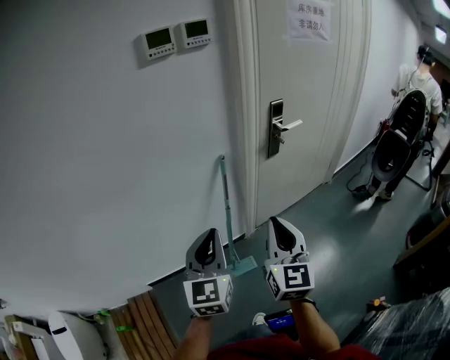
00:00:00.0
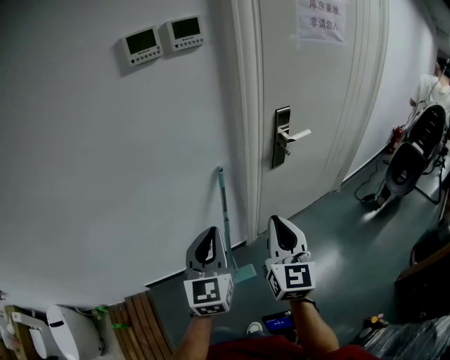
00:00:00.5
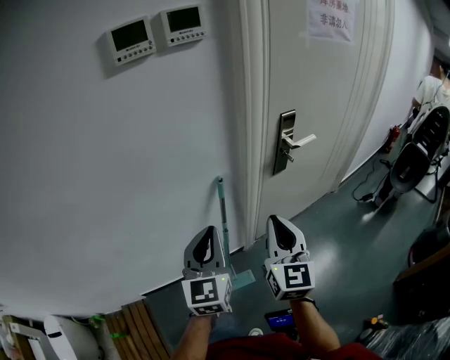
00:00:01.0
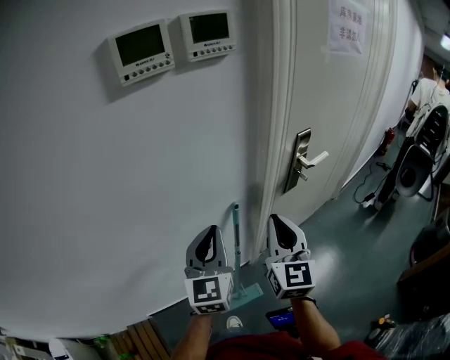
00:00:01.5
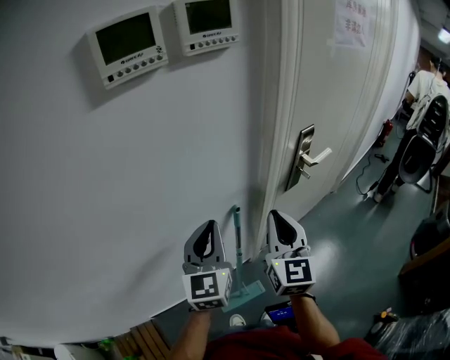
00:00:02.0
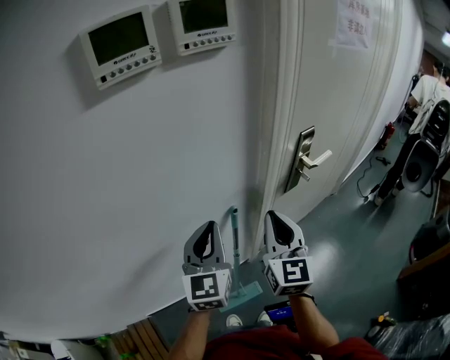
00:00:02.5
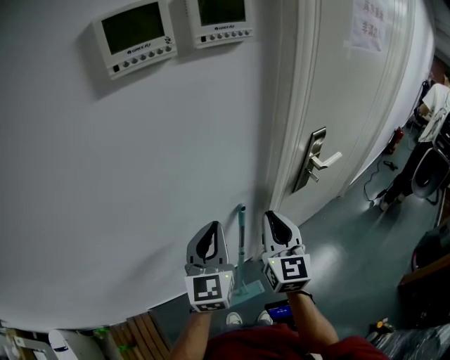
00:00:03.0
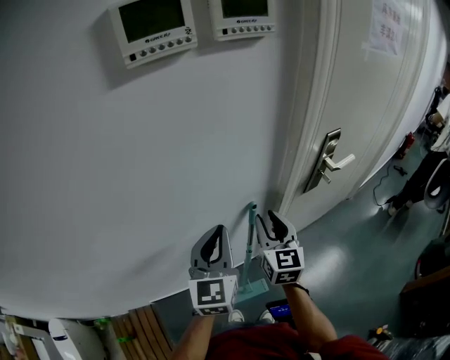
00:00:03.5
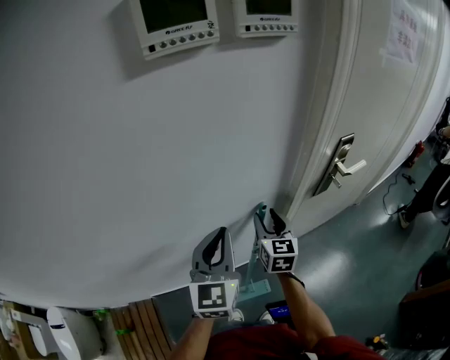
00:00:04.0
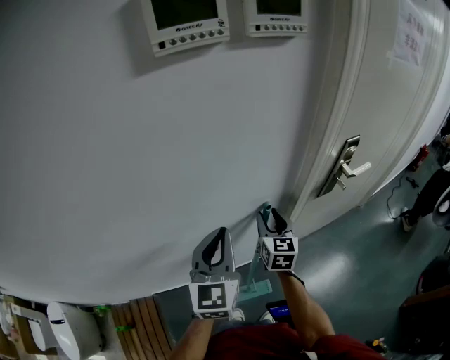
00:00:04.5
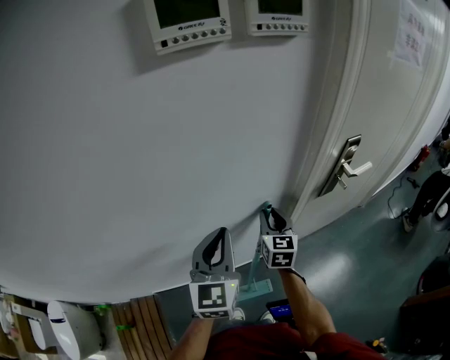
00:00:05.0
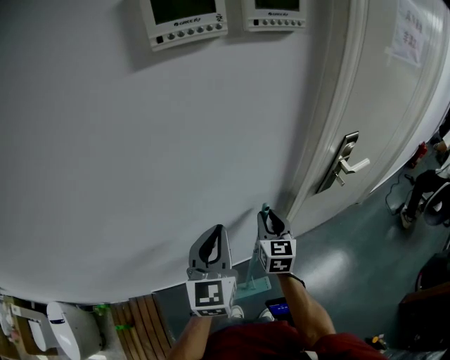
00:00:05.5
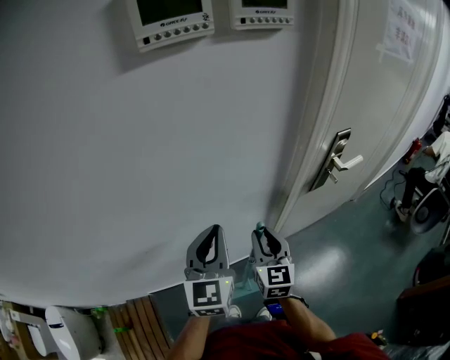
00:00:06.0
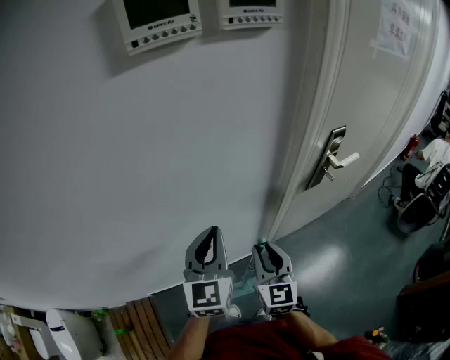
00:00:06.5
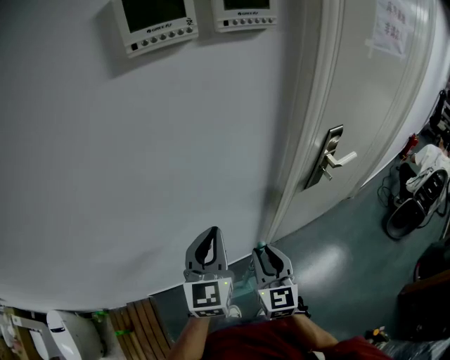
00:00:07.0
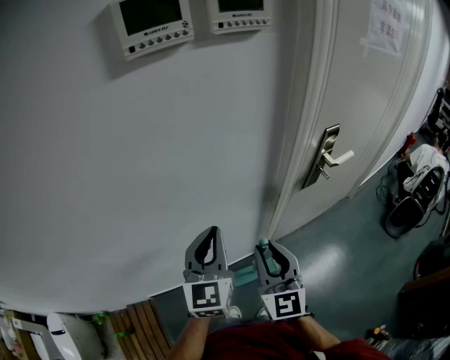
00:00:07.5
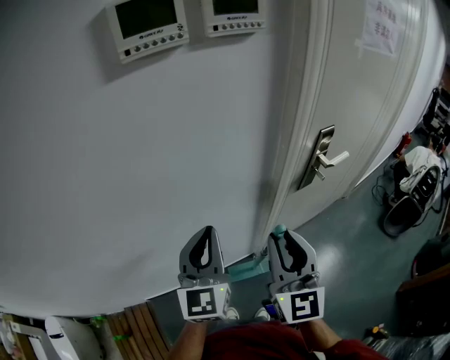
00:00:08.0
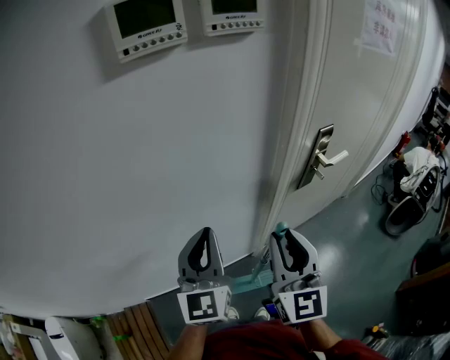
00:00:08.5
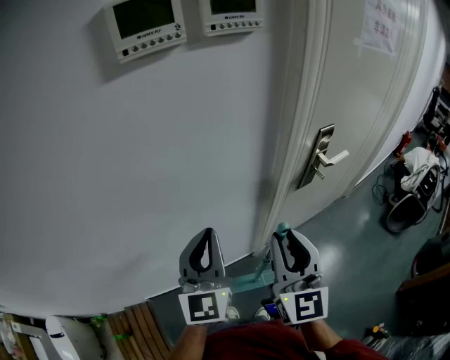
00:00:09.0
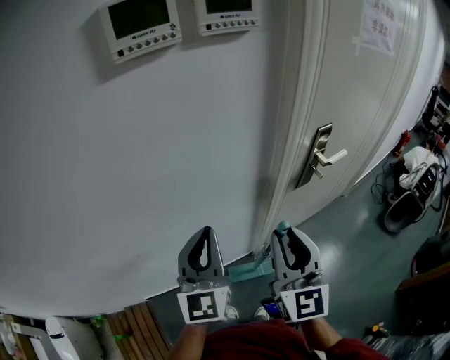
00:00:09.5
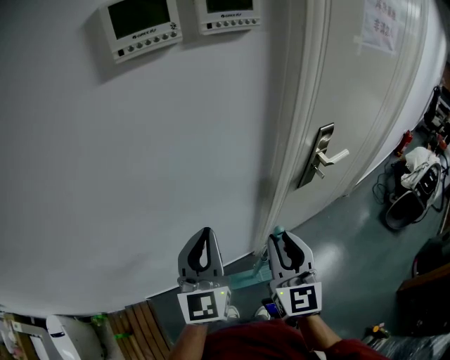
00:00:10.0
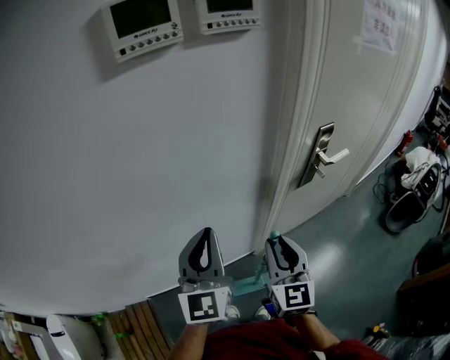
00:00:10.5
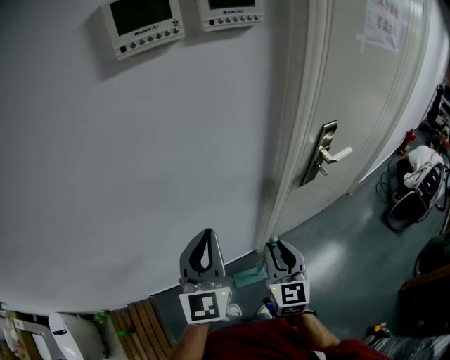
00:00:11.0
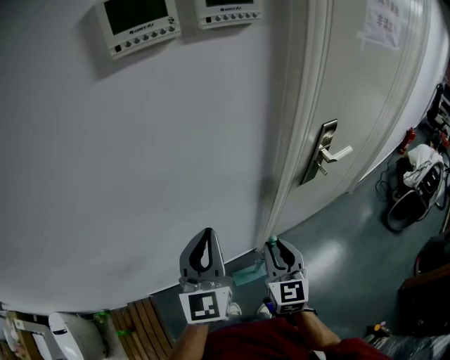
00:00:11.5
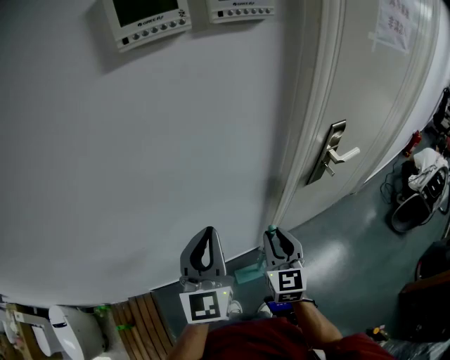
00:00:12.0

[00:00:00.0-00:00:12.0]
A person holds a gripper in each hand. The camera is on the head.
00:00:00.0 to 00:00:02.0: The two grippers go approximately 30 cm forward.
00:00:02.0 to 00:00:04.0: The right gripper moves downward, forward and to the left, roughly 20 cm, changes its angle by roughly 20 degrees, and opens its fingers.
00:00:04.0 to 00:00:06.0: The right gripper is displaced backward by about 5 cm.
00:00:06.0 to 00:00:08.0: The right gripper shifts about 15 cm upward and backward.
00:00:08.0 to 00:00:10.0: There are only small adjustments of the grippers.
00:00:10.0 to 00:00:12.0: The right gripper heads downward, covering some 10 cm.

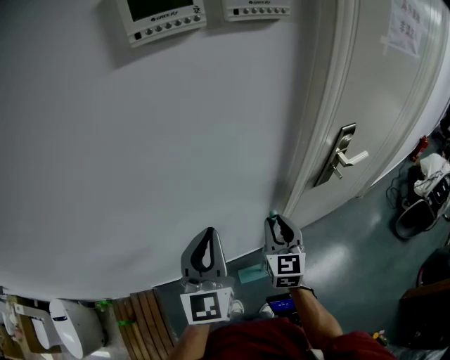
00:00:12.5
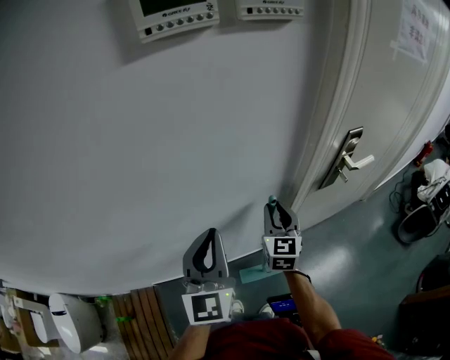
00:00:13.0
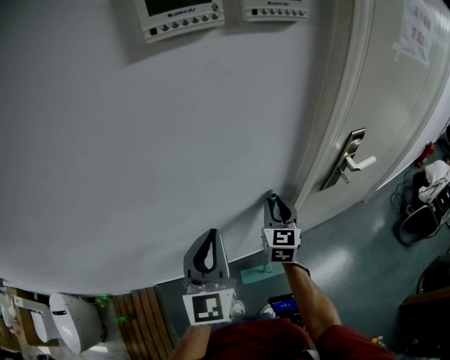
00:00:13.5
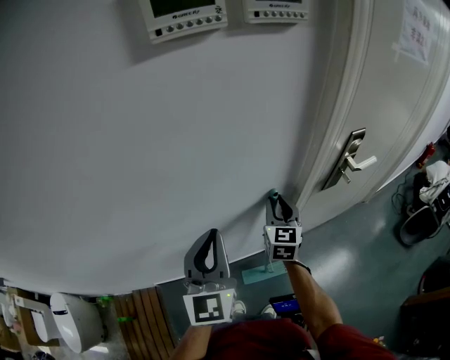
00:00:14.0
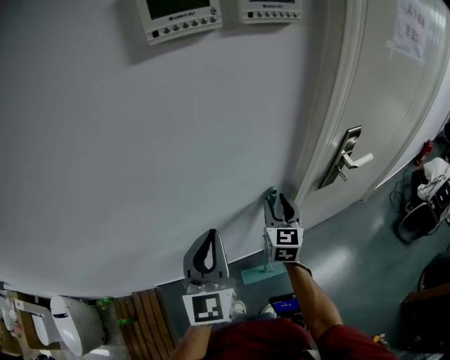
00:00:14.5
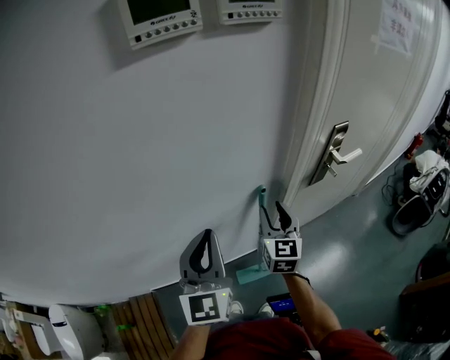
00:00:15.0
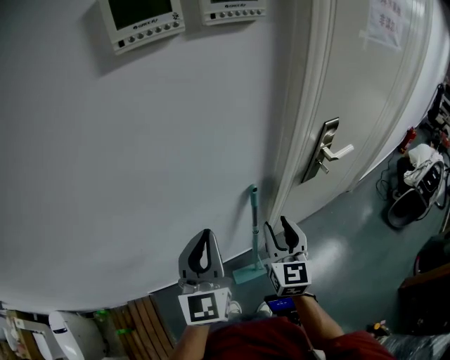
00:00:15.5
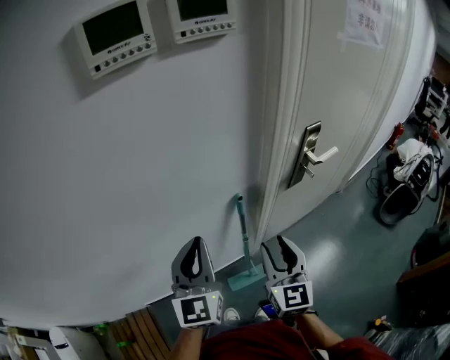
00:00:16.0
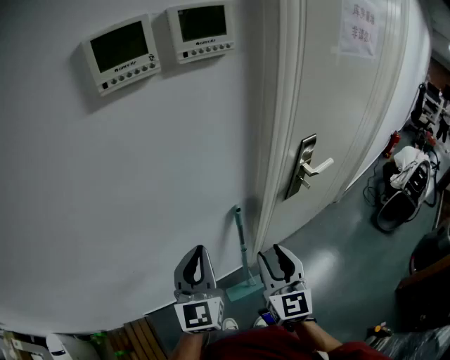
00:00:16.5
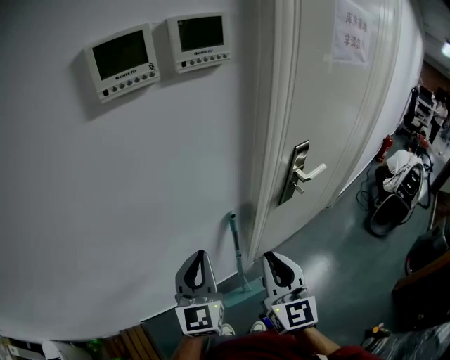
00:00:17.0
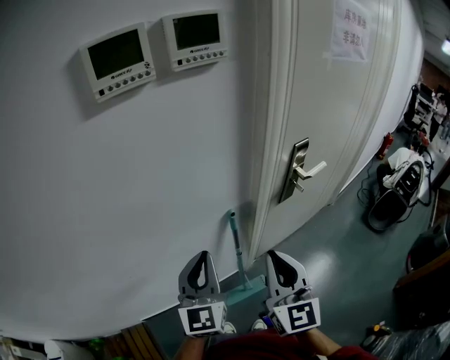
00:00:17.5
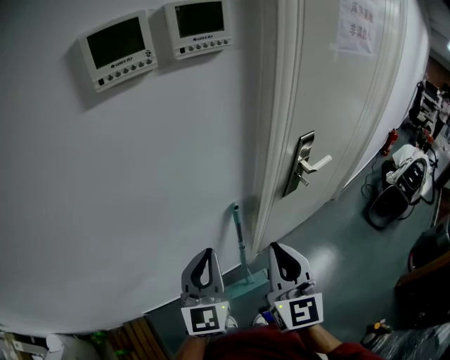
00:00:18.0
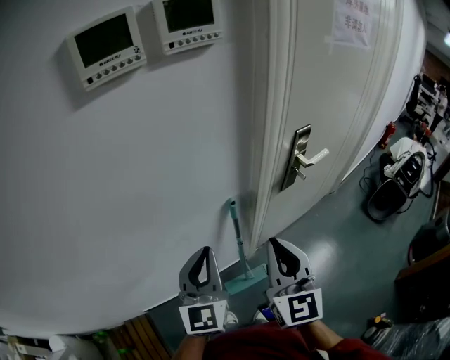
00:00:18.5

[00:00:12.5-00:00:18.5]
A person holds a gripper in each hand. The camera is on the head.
00:00:12.5 to 00:00:14.5: The right gripper moves forward, roughly 5 cm.
00:00:14.5 to 00:00:16.5: The right gripper shifts approximately 15 cm backward and upward.
00:00:16.5 to 00:00:18.5: The right gripper moves upward, roughly 5 cm, and closes its fingers.

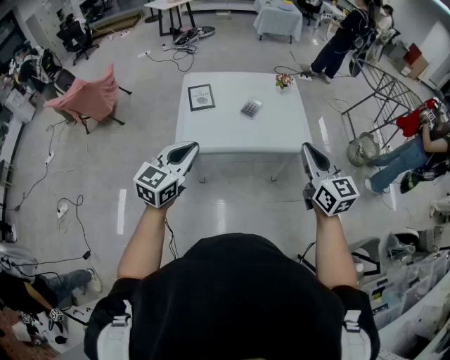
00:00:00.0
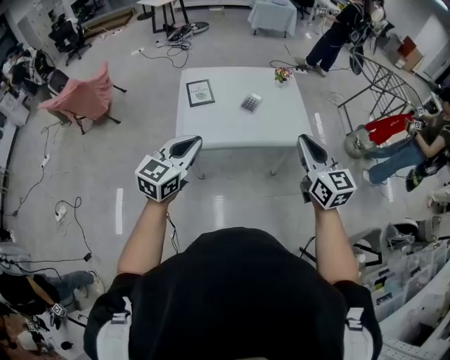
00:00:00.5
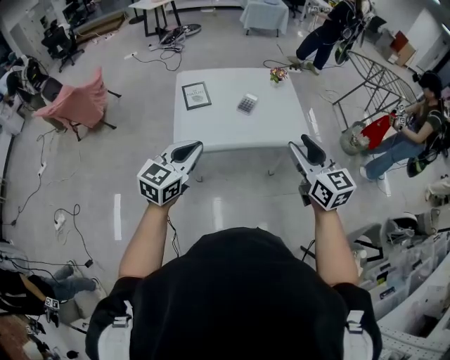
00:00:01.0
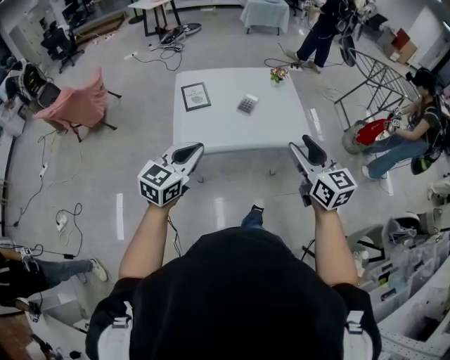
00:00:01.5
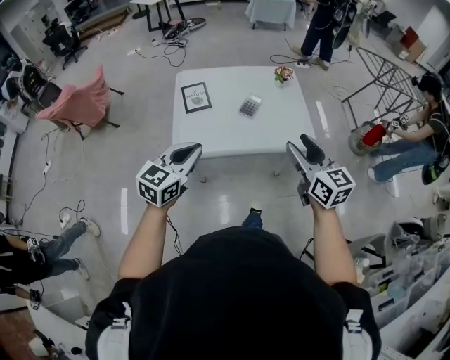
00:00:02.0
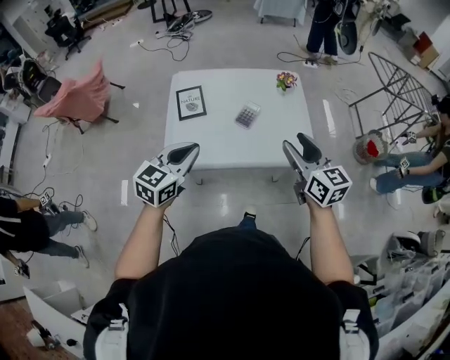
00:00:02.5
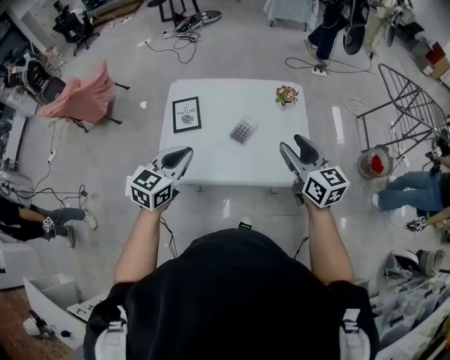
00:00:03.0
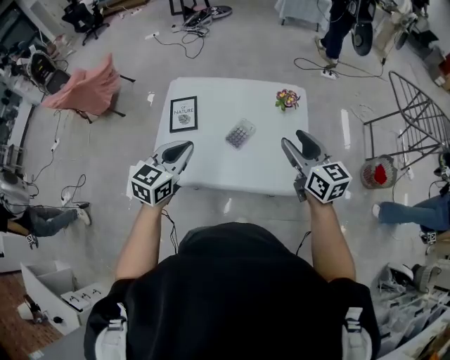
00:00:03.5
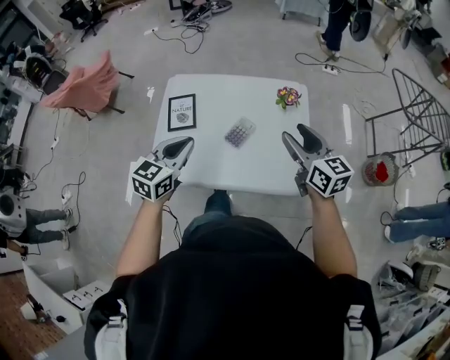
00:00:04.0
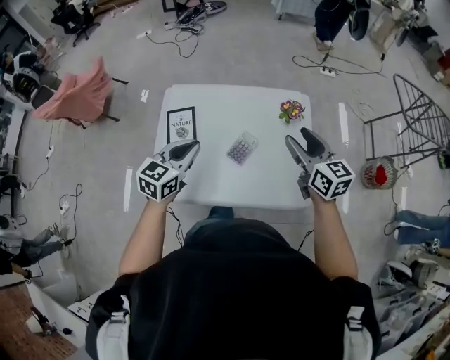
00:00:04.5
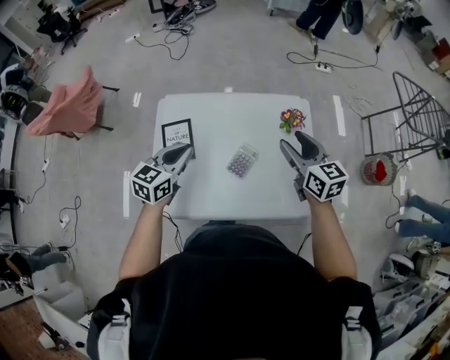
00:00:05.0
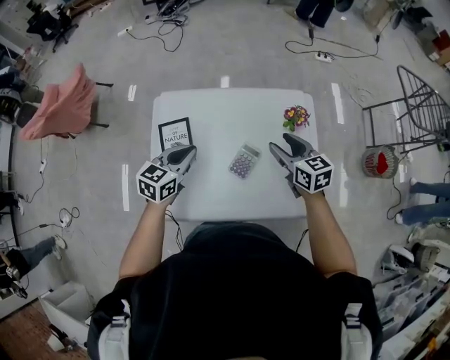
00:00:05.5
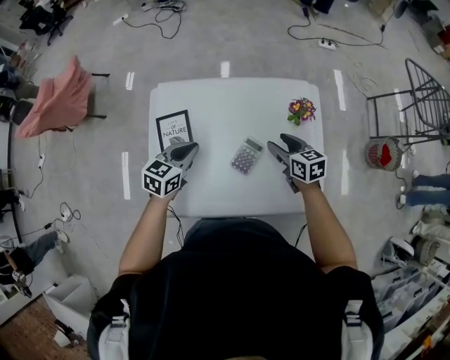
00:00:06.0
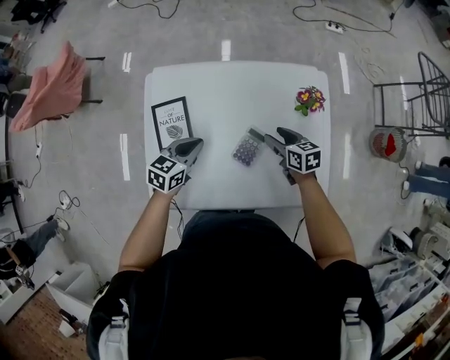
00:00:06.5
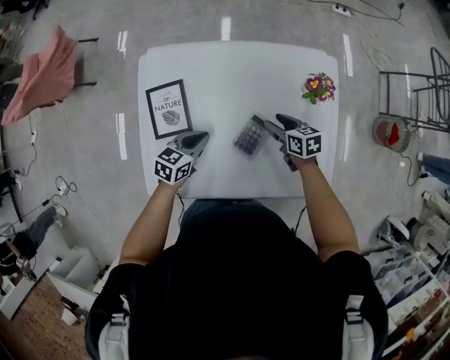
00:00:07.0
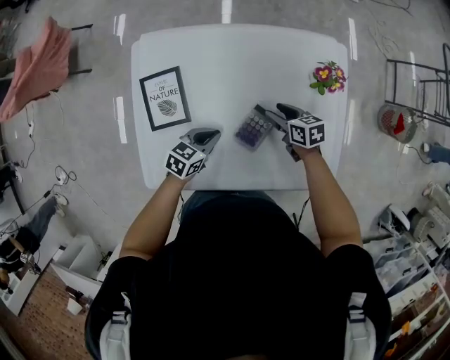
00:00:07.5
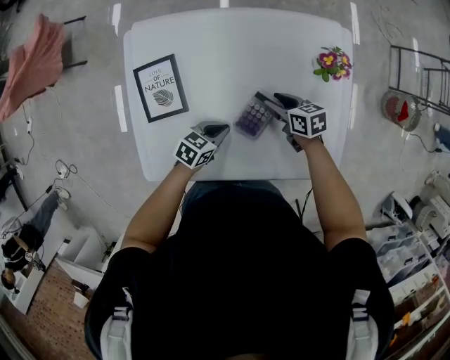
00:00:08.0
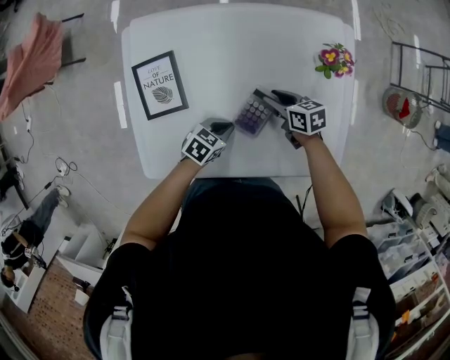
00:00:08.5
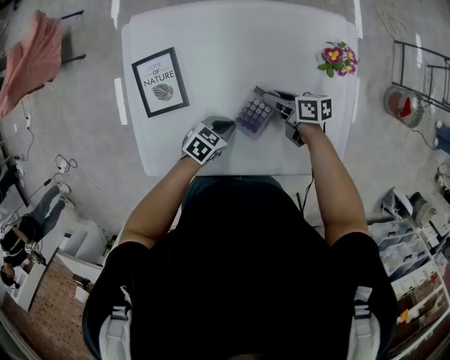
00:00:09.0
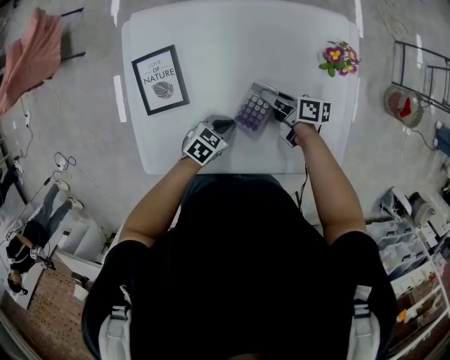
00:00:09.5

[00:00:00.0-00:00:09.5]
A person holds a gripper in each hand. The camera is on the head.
00:00:00.0 to 00:00:02.0: The two grippers go roughly 10 cm forward. The right gripper opens up.
00:00:02.0 to 00:00:04.0: The left gripper heads forward and to the right, covering about 30 cm; the right gripper is displaced forward by some 30 cm.
00:00:04.0 to 00:00:05.5: The right gripper moves forward, downward and to the left, roughly 20 cm; the left gripper shifts approximately 20 cm forward and downward.
00:00:05.5 to 00:00:07.5: Both grippers travel together downward, approximately 25 cm. The right gripper turns by about 30 degrees, while the left gripper turns by about 20 degrees.
00:00:07.5 to 00:00:09.5: The left gripper shifts by approximately 10 cm. The right gripper changes its angle by some 30 degrees, and closes up.
